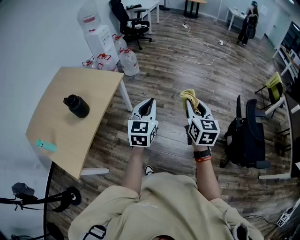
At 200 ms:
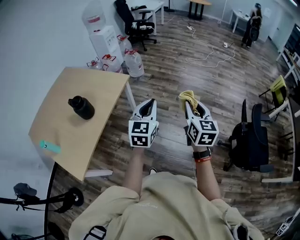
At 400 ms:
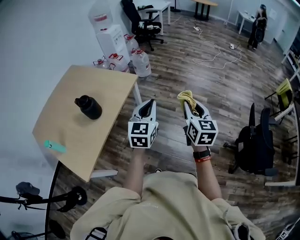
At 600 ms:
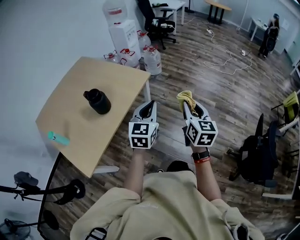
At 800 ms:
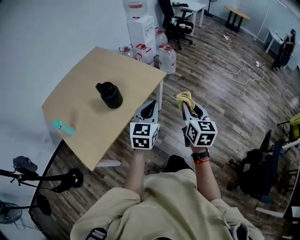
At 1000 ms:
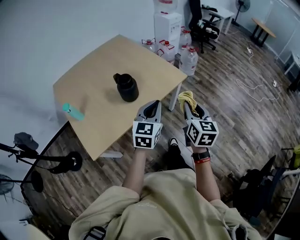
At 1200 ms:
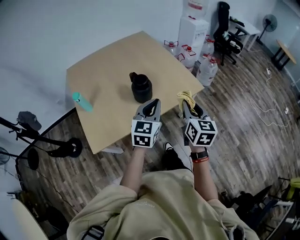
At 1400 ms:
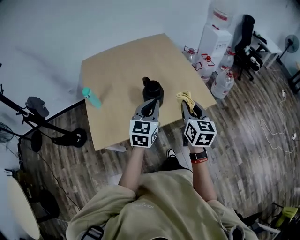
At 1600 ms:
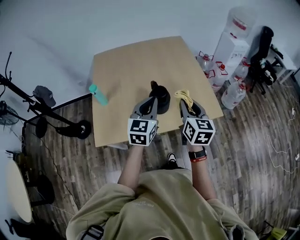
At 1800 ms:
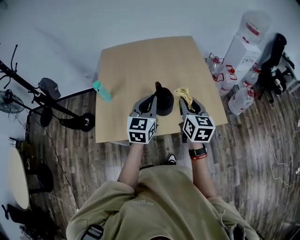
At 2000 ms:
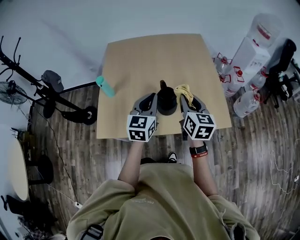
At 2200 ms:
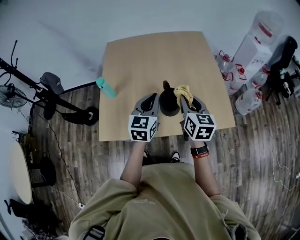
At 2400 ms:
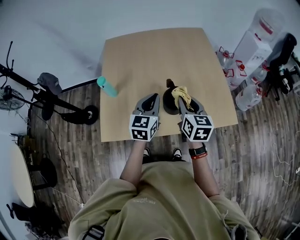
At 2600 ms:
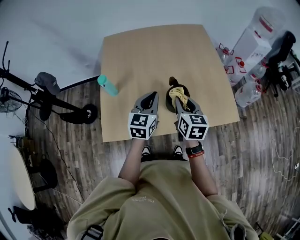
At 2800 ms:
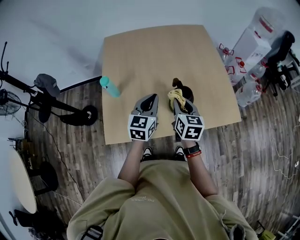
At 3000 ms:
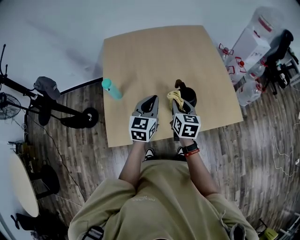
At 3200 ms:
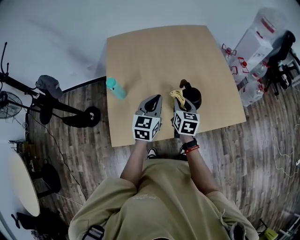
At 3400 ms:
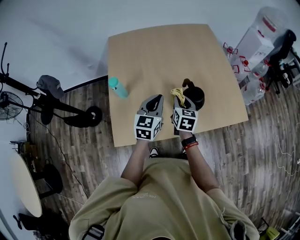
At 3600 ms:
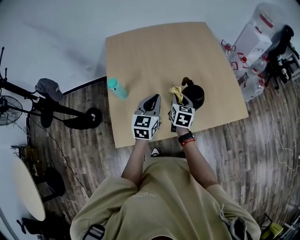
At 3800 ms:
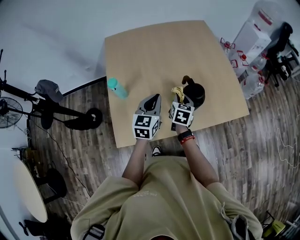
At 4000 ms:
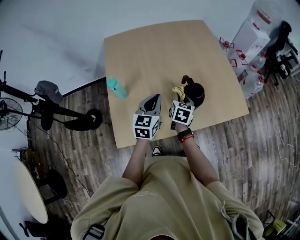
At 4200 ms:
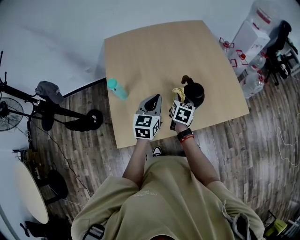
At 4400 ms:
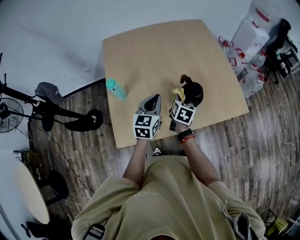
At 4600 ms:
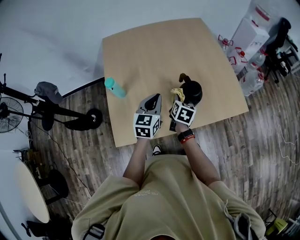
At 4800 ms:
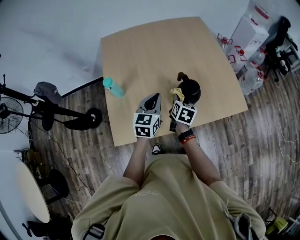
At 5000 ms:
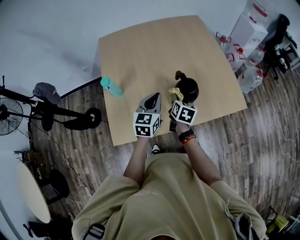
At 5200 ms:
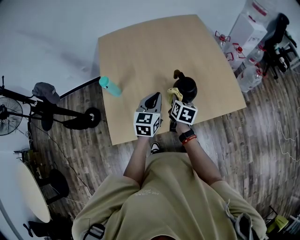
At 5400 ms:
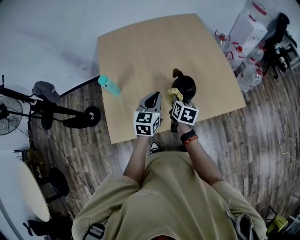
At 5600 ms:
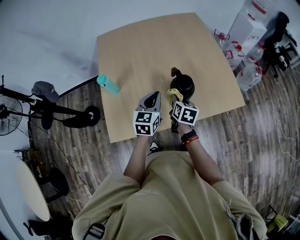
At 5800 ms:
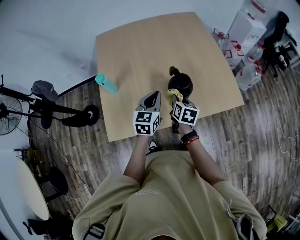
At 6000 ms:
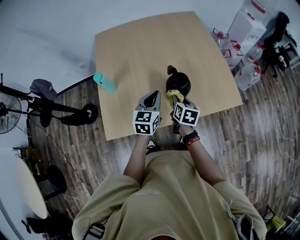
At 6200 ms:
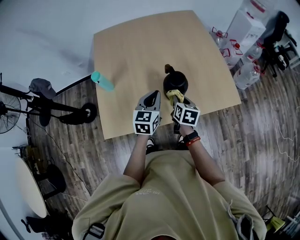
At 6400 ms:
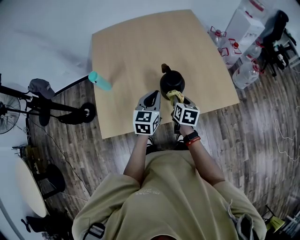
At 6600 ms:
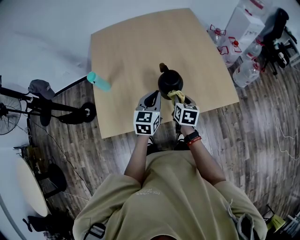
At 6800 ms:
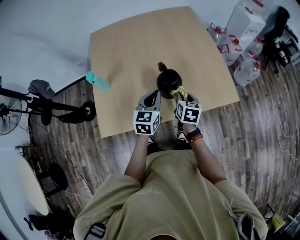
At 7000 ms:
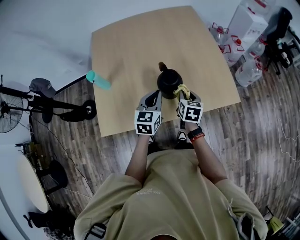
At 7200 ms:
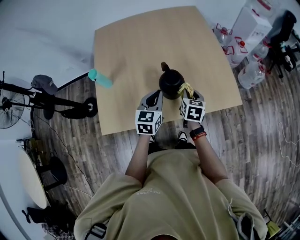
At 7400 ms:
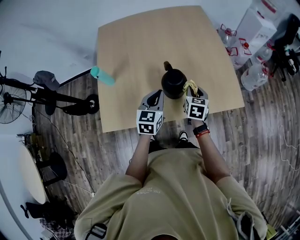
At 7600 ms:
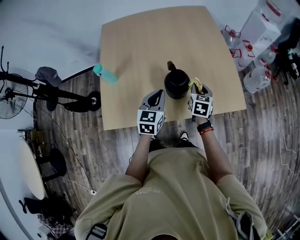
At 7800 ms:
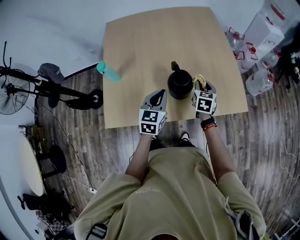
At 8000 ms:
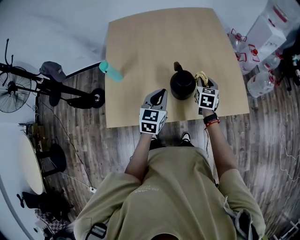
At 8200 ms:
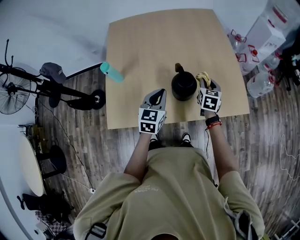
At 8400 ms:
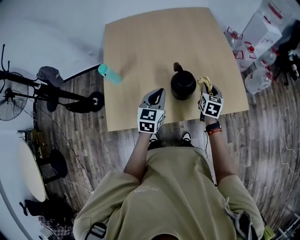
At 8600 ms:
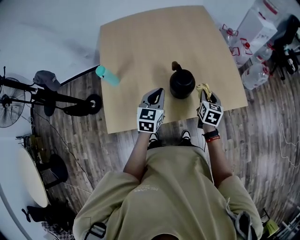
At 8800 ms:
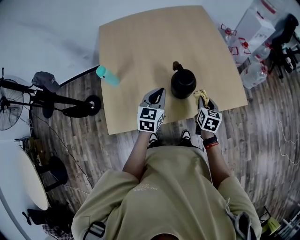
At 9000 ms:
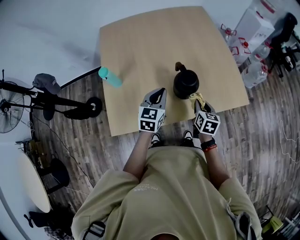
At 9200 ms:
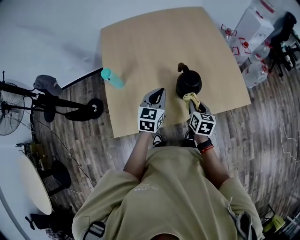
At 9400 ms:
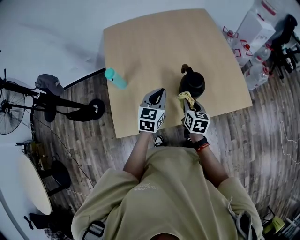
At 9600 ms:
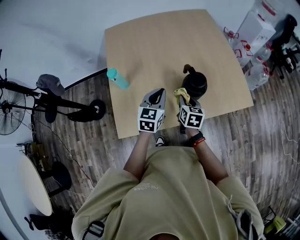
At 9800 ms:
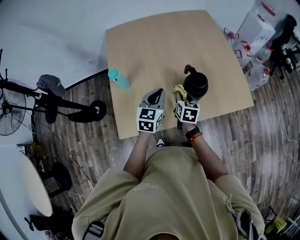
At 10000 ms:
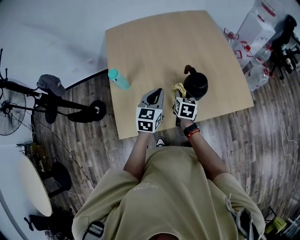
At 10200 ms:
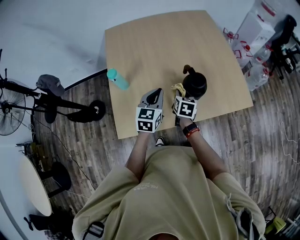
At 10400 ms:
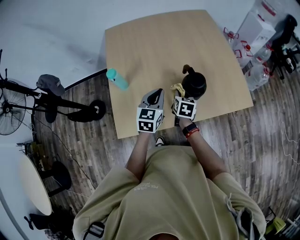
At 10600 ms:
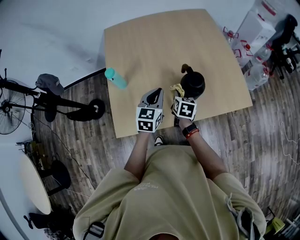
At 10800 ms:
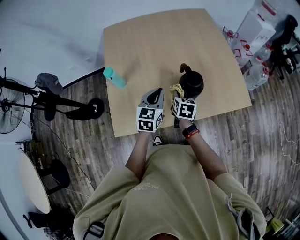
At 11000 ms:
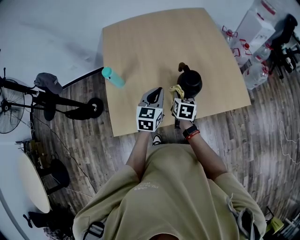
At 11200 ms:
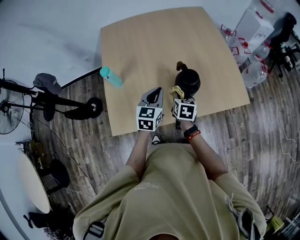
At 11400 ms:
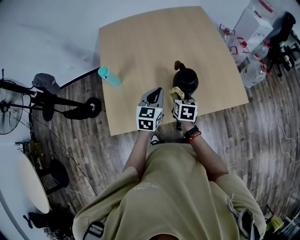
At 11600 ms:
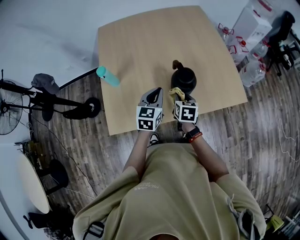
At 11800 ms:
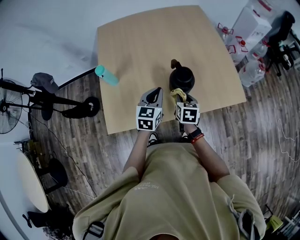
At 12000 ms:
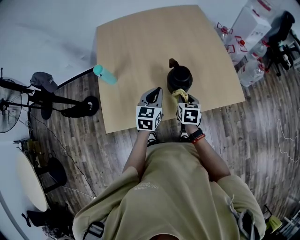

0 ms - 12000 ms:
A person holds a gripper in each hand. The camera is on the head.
0 ms - 1600 ms: Both grippers are carried about 60 cm. The left gripper turns by some 60 degrees. The right gripper swivels about 60 degrees.
1600 ms - 3000 ms: The two grippers go some 25 cm to the left, forward and downward.
3000 ms - 4400 ms: The right gripper is displaced downward by roughly 10 cm, and changes its angle by some 20 degrees.
4400 ms - 6000 ms: The left gripper shifts about 10 cm to the right; the right gripper heads to the right and backward, covering approximately 10 cm.
6000 ms - 7600 ms: The right gripper travels to the right and forward by approximately 15 cm, and rotates roughly 20 degrees. Meanwhile the left gripper shifts roughly 5 cm to the right.
7600 ms - 9000 ms: The left gripper goes approximately 5 cm to the left. The right gripper is displaced backward and to the left by roughly 10 cm.
9000 ms - 10400 ms: The left gripper shifts some 5 cm to the left; the right gripper heads to the left, covering approximately 15 cm.
10400 ms - 12000 ms: The left gripper shifts some 10 cm to the right. The right gripper moves to the right and backward, some 10 cm.

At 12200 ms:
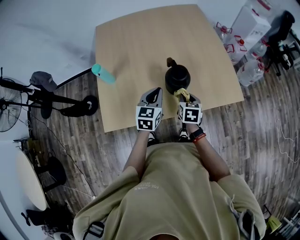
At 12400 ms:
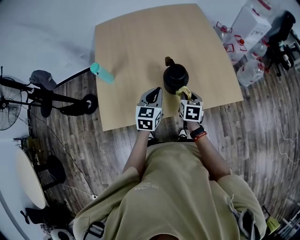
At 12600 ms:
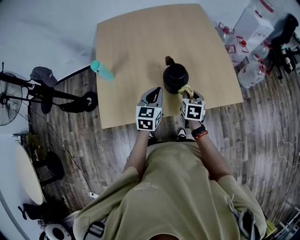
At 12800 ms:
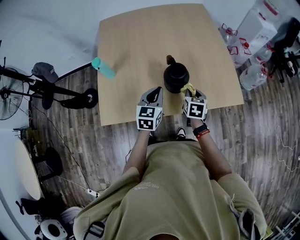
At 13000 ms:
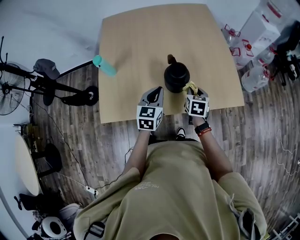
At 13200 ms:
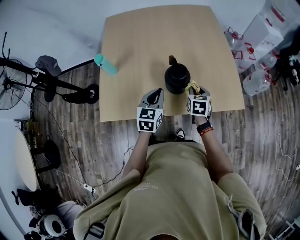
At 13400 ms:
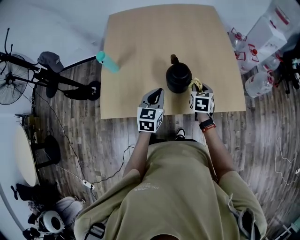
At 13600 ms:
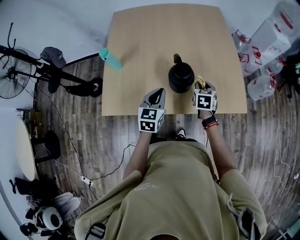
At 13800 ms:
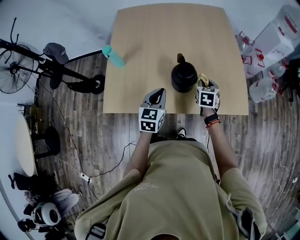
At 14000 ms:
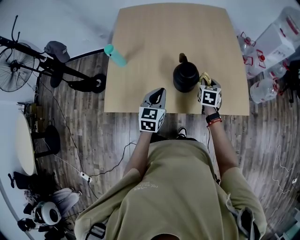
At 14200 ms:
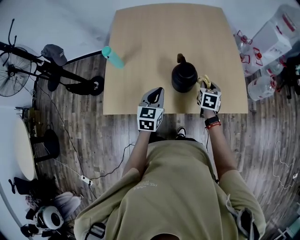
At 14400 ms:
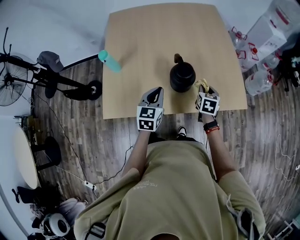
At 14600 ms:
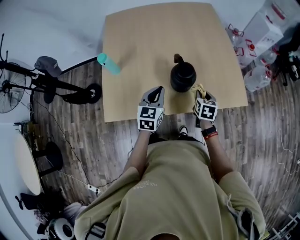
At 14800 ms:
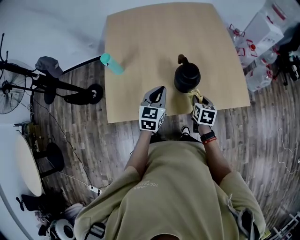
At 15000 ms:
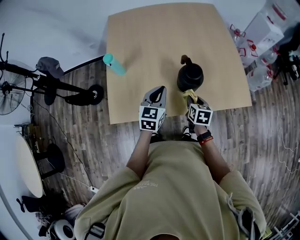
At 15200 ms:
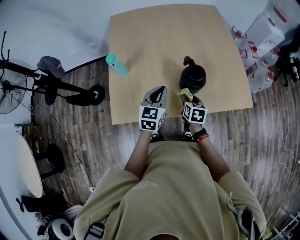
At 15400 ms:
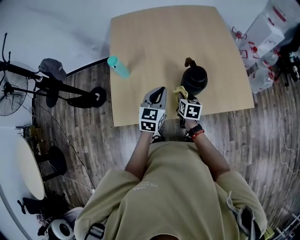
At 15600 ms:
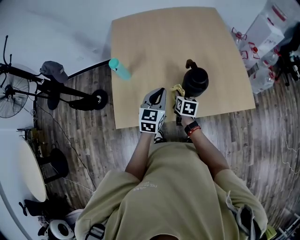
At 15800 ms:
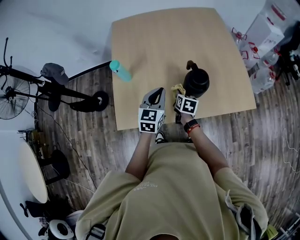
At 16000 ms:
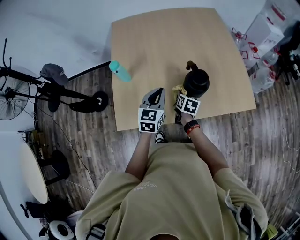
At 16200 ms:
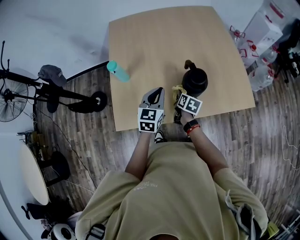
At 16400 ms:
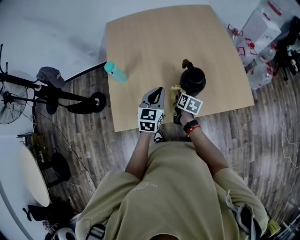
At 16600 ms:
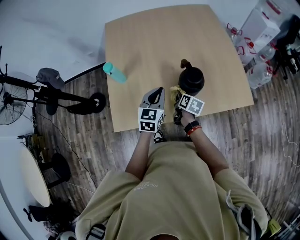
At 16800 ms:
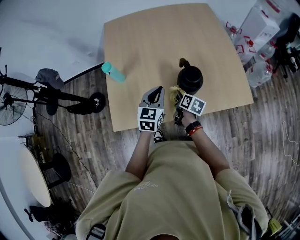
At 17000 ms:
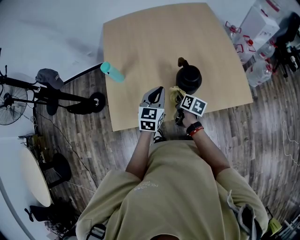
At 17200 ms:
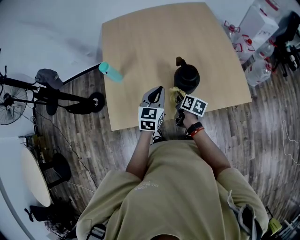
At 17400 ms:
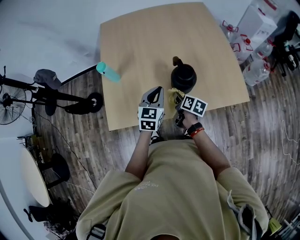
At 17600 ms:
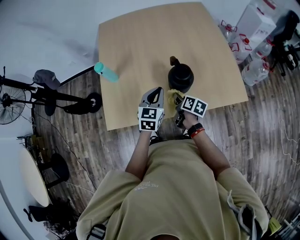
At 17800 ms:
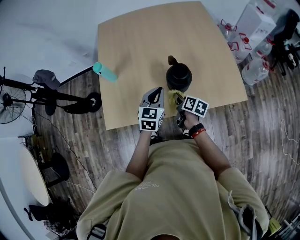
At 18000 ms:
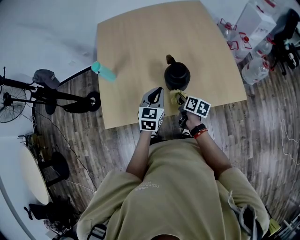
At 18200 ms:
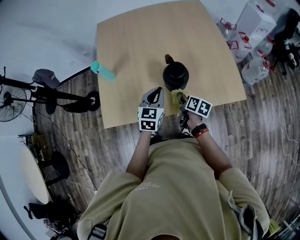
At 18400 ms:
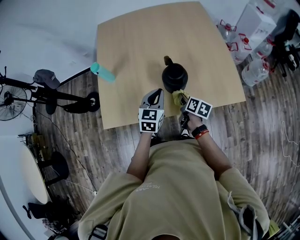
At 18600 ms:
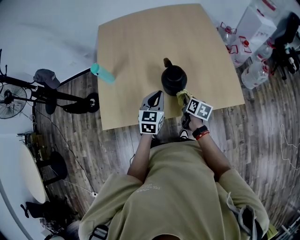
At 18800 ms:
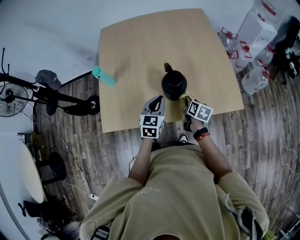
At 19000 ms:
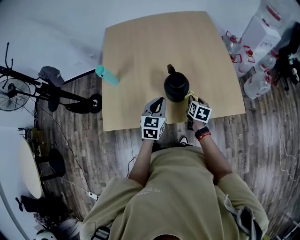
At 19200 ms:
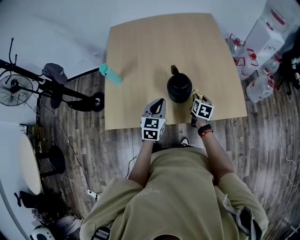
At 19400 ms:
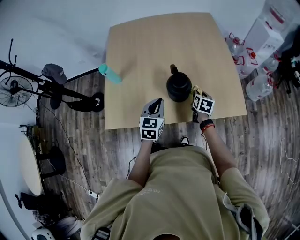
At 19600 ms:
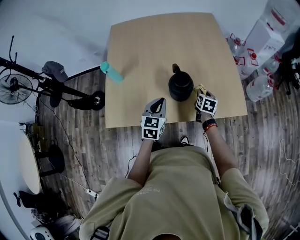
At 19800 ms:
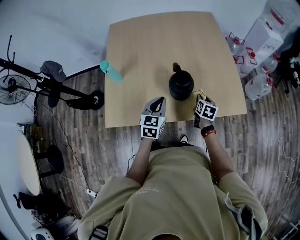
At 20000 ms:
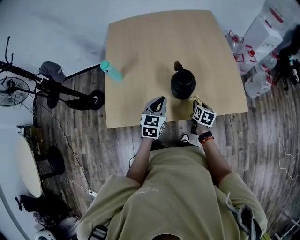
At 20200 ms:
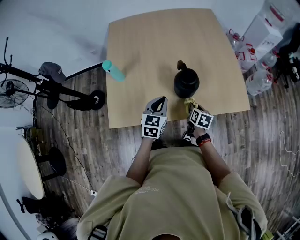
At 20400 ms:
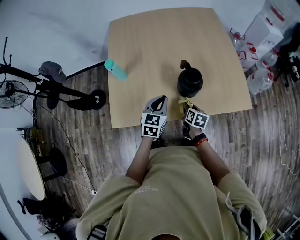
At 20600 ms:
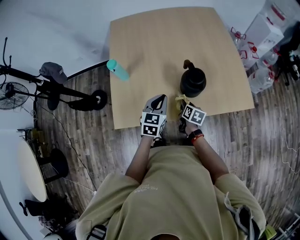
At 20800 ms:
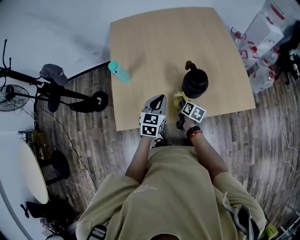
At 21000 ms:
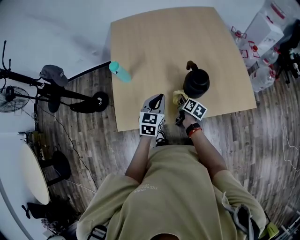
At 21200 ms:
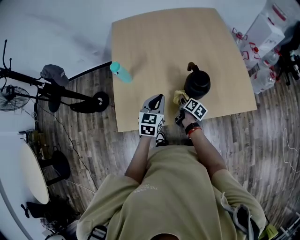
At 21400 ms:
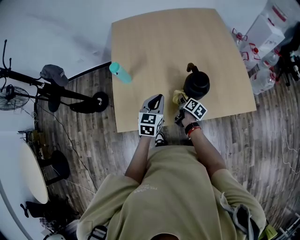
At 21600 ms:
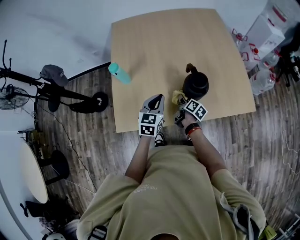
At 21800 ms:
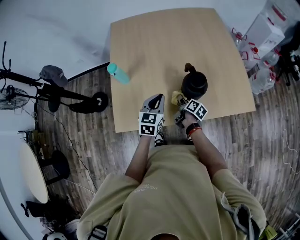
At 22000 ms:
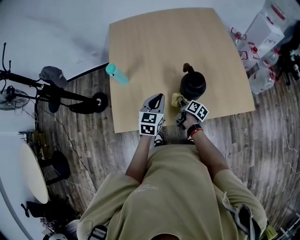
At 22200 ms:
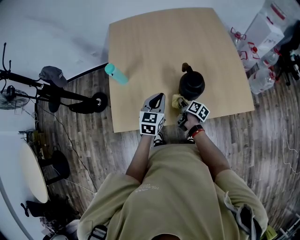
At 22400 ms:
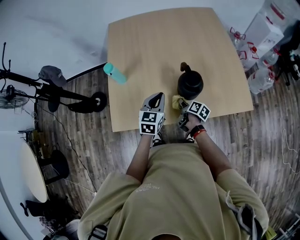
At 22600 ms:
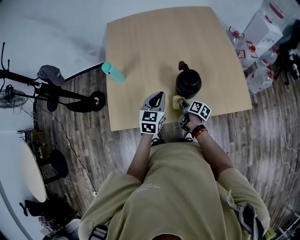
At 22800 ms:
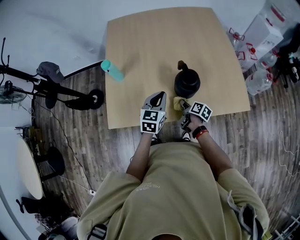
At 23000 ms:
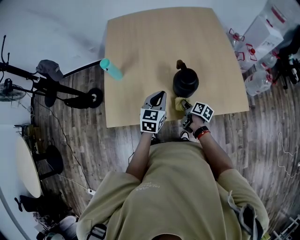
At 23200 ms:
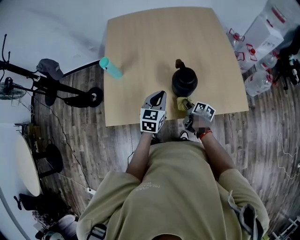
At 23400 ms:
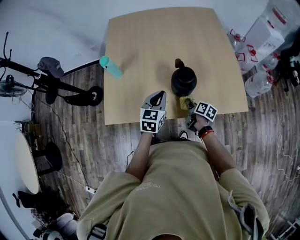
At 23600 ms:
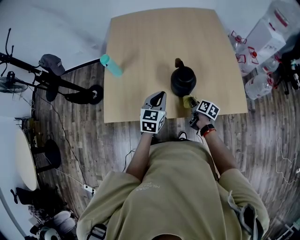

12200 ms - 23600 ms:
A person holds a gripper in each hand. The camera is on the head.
12200 ms - 13600 ms: The right gripper moves to the right and forward, about 10 cm.
13600 ms - 15000 ms: The right gripper shifts roughly 15 cm to the left and backward. The left gripper is displaced to the left by roughly 10 cm.
15000 ms - 16400 ms: The right gripper heads to the left and forward, covering some 10 cm, and swivels some 20 degrees.
16400 ms - 17800 ms: The grippers both shift to the right by about 10 cm.
17800 ms - 19400 ms: The right gripper is displaced to the right and forward by approximately 15 cm, and changes its angle by some 30 degrees.
19400 ms - 20800 ms: The left gripper is displaced to the left by approximately 10 cm. Meanwhile the right gripper is displaced to the left by approximately 20 cm, and changes its angle by about 30 degrees.
20800 ms - 22200 ms: The right gripper swivels roughly 20 degrees.
22200 ms - 23600 ms: The right gripper is displaced to the right by approximately 15 cm. Meanwhile the left gripper shifts approximately 5 cm to the right.
